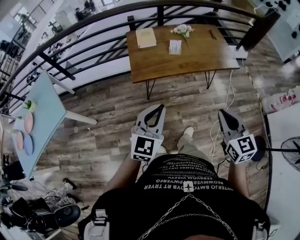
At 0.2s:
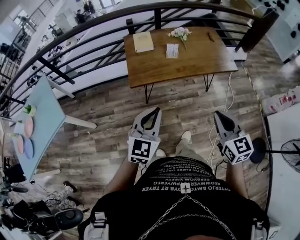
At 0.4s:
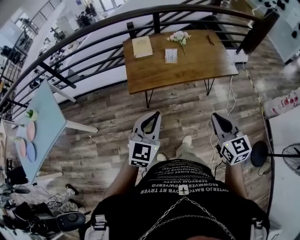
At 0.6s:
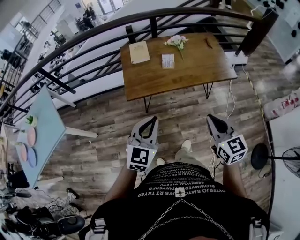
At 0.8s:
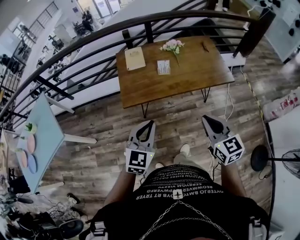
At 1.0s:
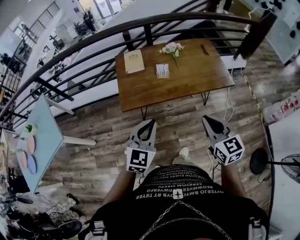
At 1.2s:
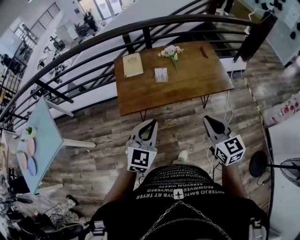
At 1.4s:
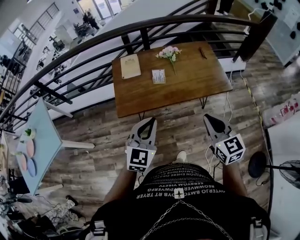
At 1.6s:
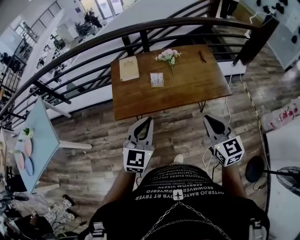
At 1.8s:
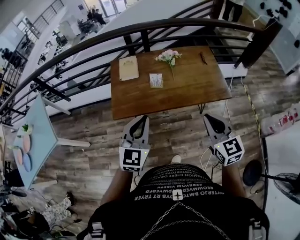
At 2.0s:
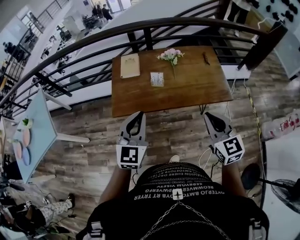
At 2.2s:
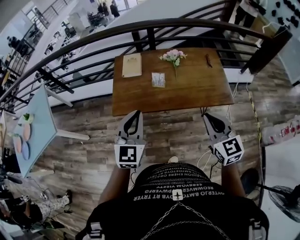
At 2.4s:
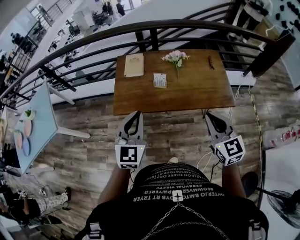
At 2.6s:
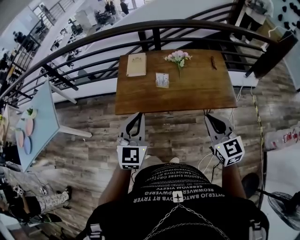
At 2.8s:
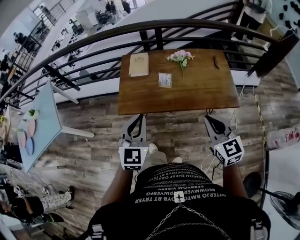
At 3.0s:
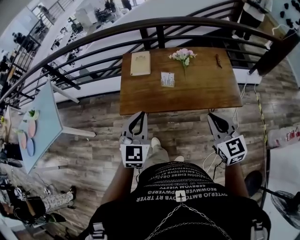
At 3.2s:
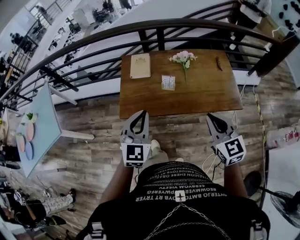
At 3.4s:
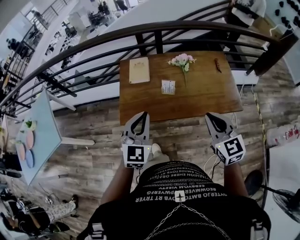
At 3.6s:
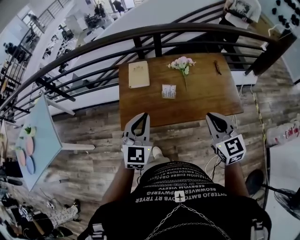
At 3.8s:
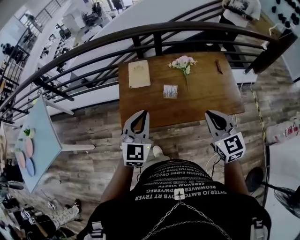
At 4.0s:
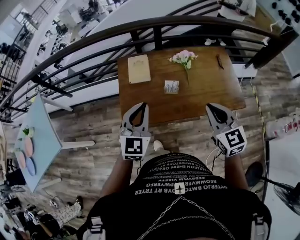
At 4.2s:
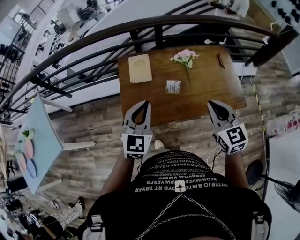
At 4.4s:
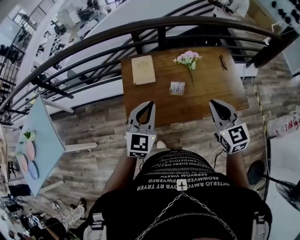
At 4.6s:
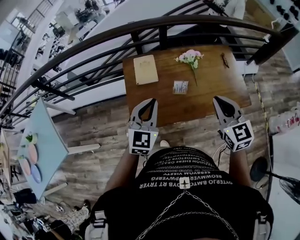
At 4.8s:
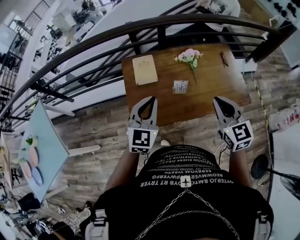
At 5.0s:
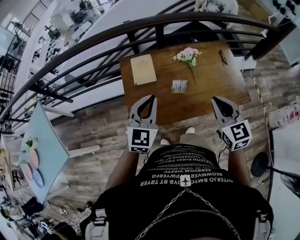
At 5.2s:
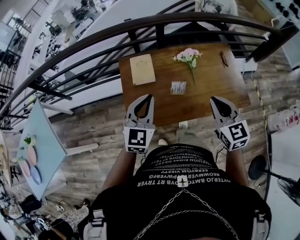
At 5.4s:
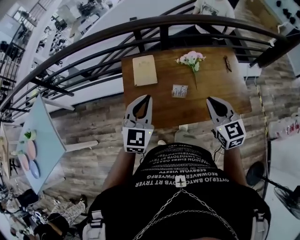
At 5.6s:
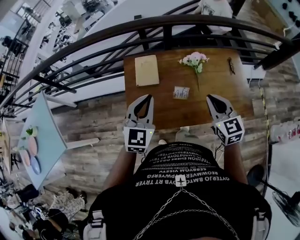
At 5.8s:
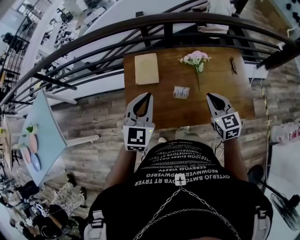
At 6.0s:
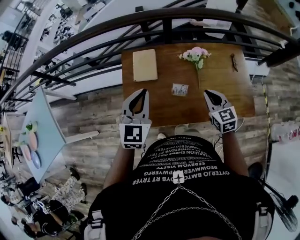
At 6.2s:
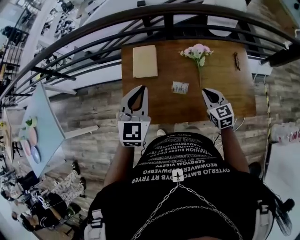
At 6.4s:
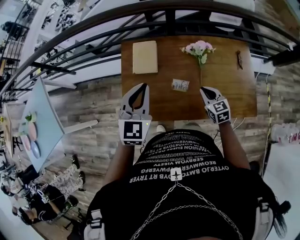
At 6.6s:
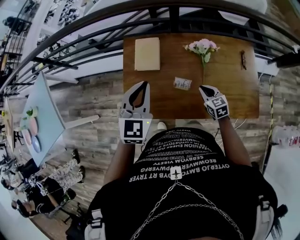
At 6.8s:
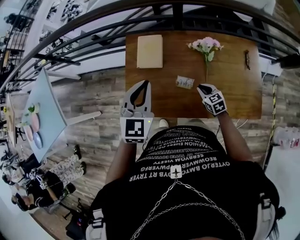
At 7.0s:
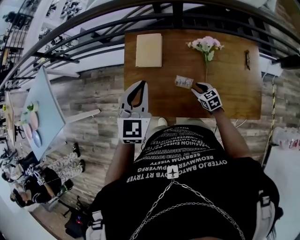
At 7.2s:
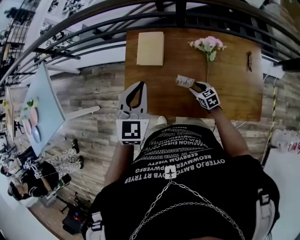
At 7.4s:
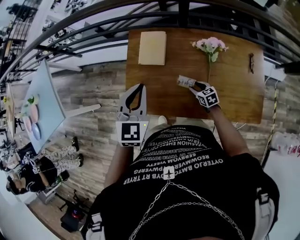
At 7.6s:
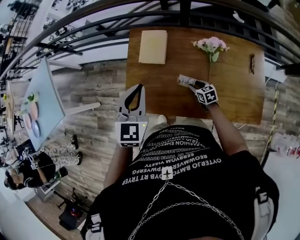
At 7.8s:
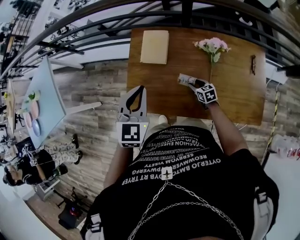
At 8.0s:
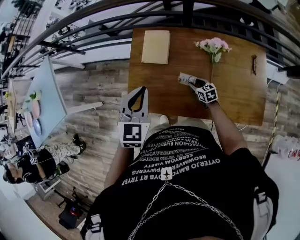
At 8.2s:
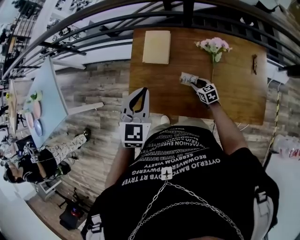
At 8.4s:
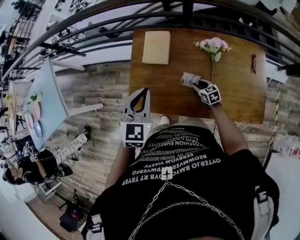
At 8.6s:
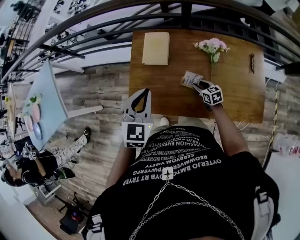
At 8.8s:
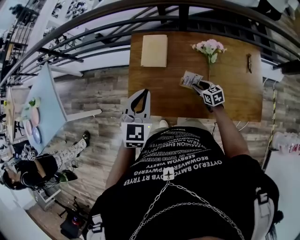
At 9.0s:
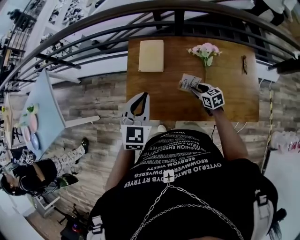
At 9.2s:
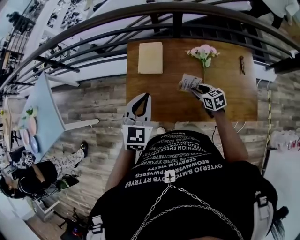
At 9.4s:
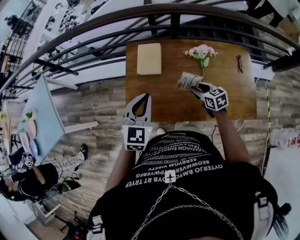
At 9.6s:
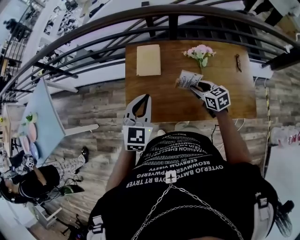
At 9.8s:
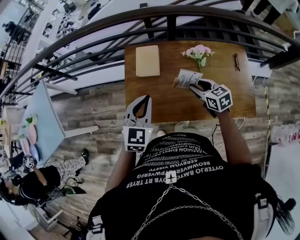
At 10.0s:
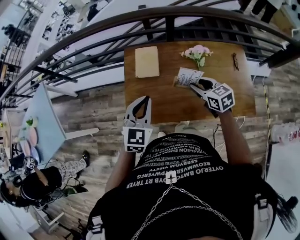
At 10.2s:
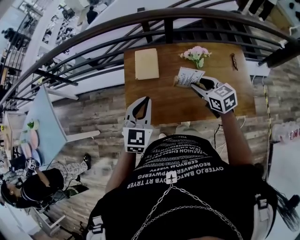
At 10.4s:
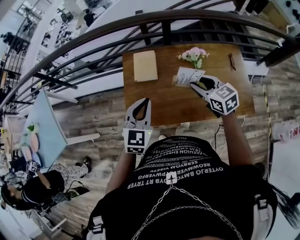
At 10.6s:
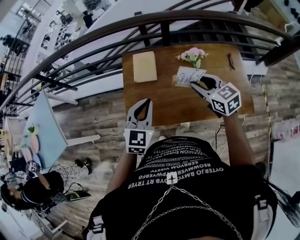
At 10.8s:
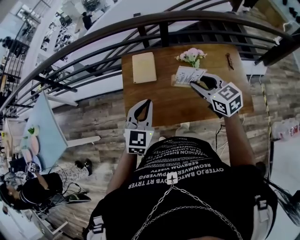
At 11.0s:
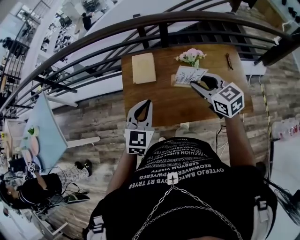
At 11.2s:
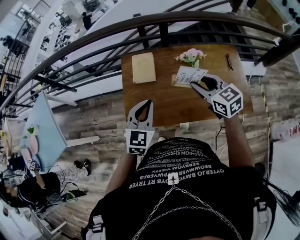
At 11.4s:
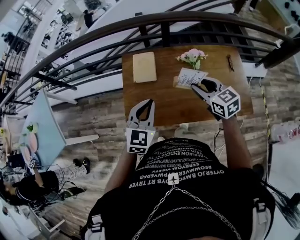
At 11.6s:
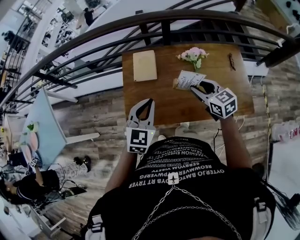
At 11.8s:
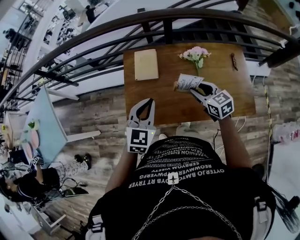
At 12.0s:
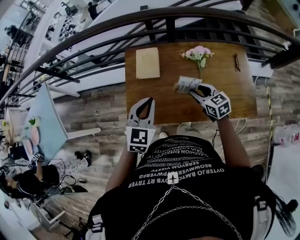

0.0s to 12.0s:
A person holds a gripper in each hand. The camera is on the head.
0.0s to 1.6s: The grippers both shift forward and to the right by some 25 cm.
1.6s to 3.0s: The two grippers go about 5 cm forward.
3.0s to 4.4s: The left gripper moves forward, roughly 15 cm; the right gripper moves forward and to the left, some 20 cm.
4.4s to 6.0s: The left gripper shifts roughly 10 cm forward. Meanwhile the right gripper moves forward and downward, approximately 20 cm.
6.0s to 7.6s: The right gripper heads downward, covering about 30 cm, rotates roughly 30 degrees, and opens.
7.6s to 9.0s: The right gripper is displaced upward by approximately 10 cm.
9.0s to 10.4s: The right gripper heads upward, covering approximately 25 cm.
10.4s to 12.0s: The right gripper is displaced downward by some 10 cm.

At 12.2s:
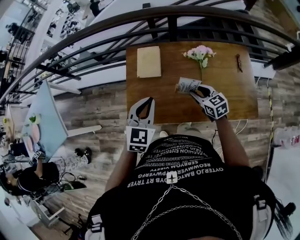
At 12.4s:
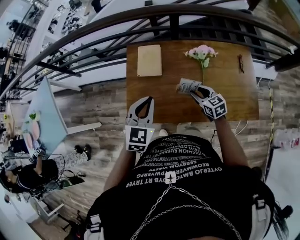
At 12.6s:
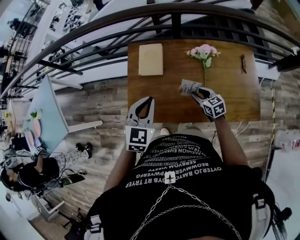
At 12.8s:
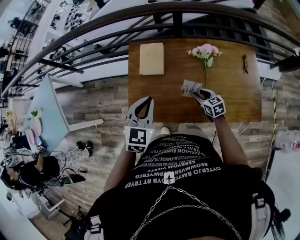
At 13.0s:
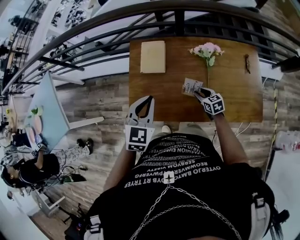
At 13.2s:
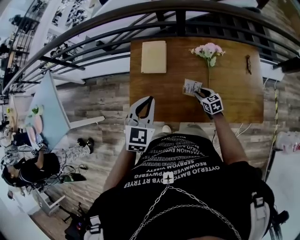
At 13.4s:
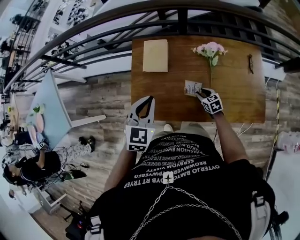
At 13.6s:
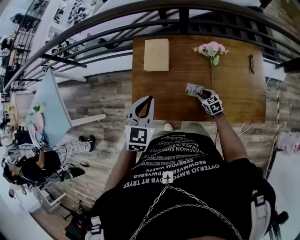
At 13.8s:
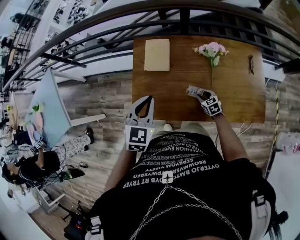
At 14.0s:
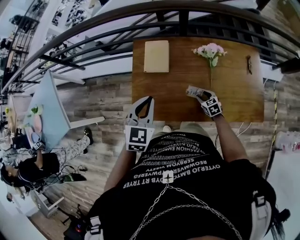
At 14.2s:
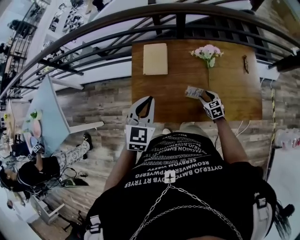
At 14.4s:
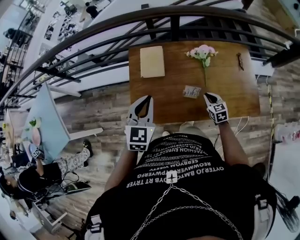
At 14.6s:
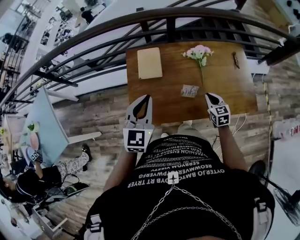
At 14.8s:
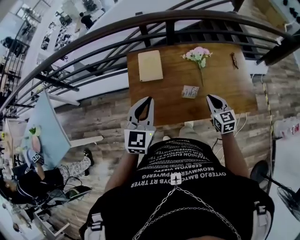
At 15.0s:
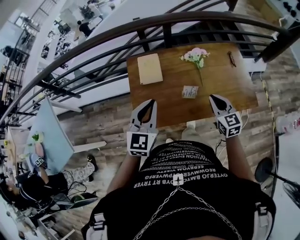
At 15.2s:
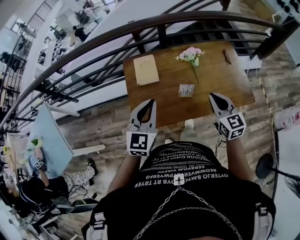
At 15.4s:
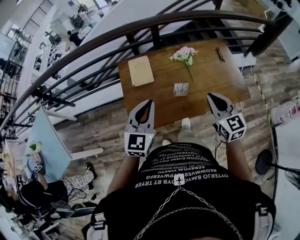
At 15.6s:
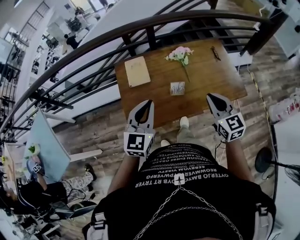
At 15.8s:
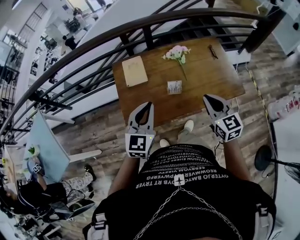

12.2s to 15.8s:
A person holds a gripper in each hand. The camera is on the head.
12.2s to 14.0s: The right gripper heads downward, covering about 20 cm.
14.0s to 15.8s: The right gripper travels upward and backward by approximately 40 cm, rotates about 40 degrees, and closes its fingers. Meanwhile the left gripper goes roughly 10 cm backward, upward and to the right, and rotates approximately 20 degrees.

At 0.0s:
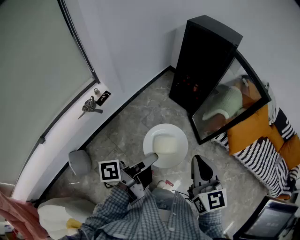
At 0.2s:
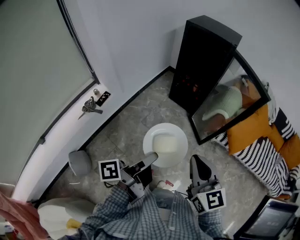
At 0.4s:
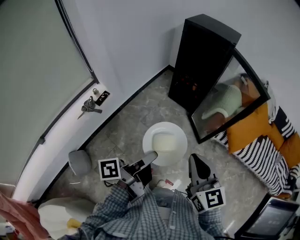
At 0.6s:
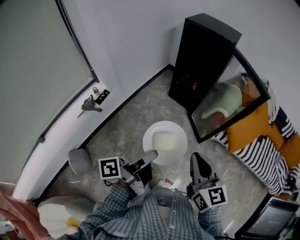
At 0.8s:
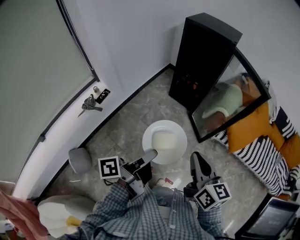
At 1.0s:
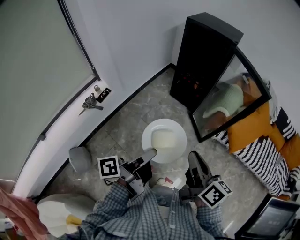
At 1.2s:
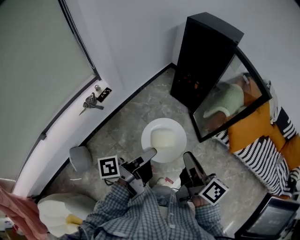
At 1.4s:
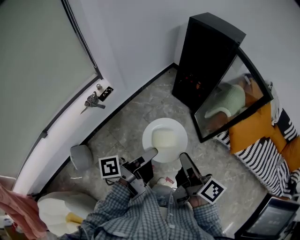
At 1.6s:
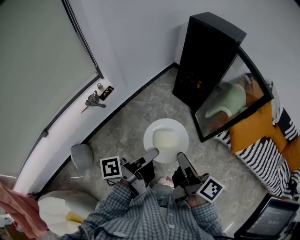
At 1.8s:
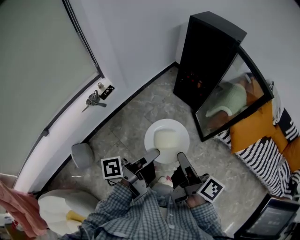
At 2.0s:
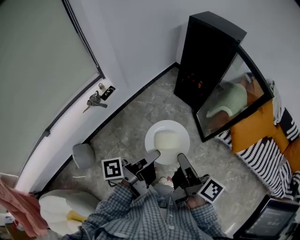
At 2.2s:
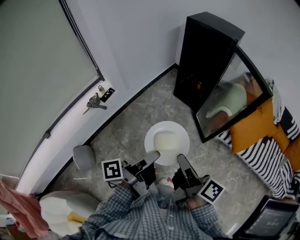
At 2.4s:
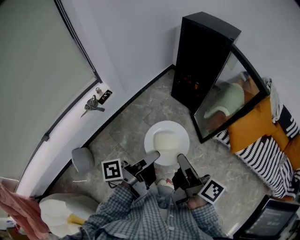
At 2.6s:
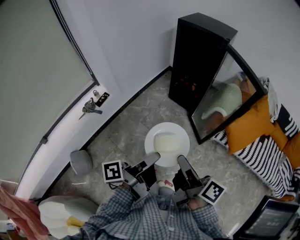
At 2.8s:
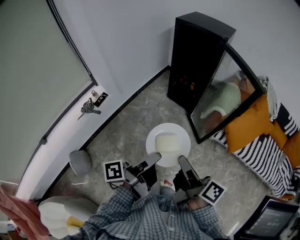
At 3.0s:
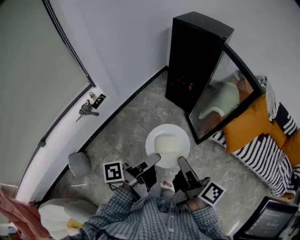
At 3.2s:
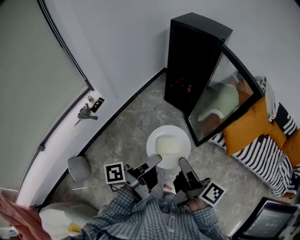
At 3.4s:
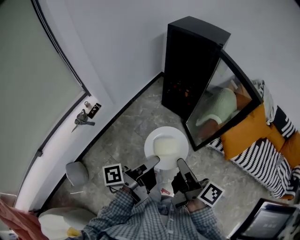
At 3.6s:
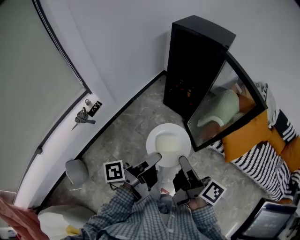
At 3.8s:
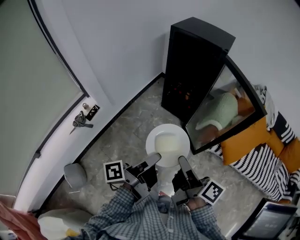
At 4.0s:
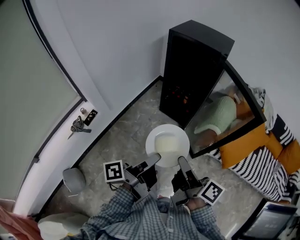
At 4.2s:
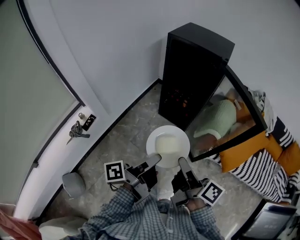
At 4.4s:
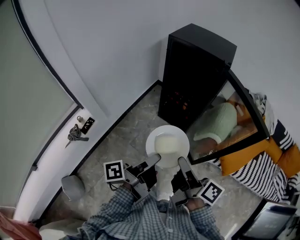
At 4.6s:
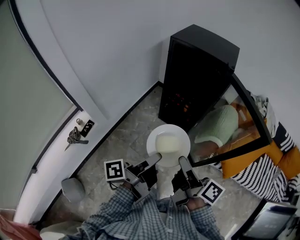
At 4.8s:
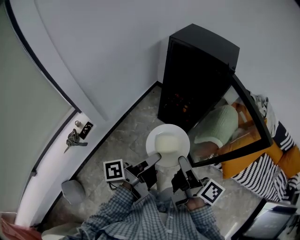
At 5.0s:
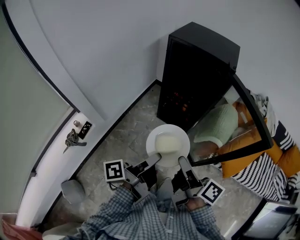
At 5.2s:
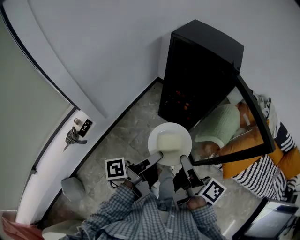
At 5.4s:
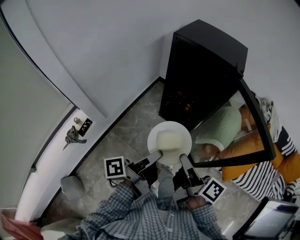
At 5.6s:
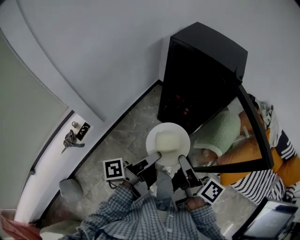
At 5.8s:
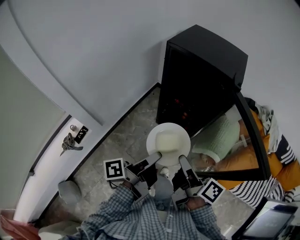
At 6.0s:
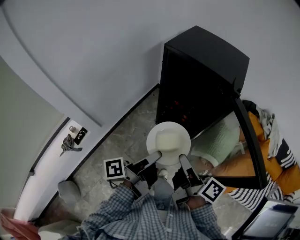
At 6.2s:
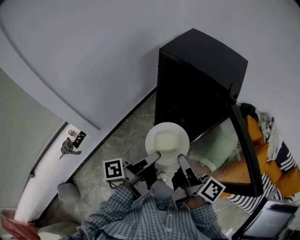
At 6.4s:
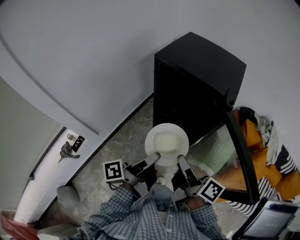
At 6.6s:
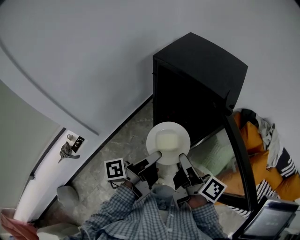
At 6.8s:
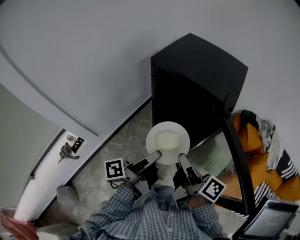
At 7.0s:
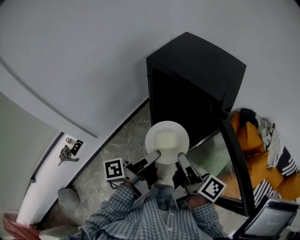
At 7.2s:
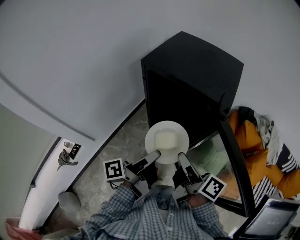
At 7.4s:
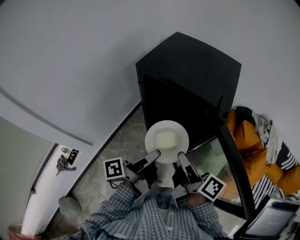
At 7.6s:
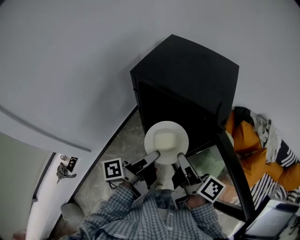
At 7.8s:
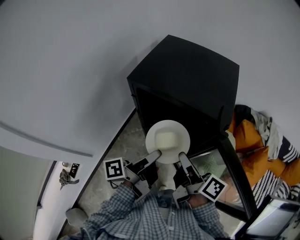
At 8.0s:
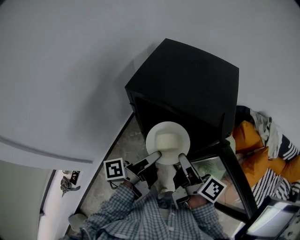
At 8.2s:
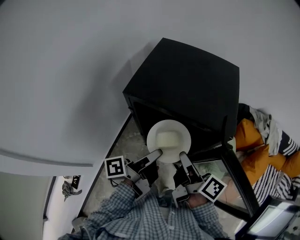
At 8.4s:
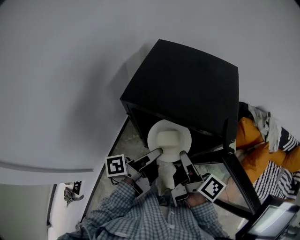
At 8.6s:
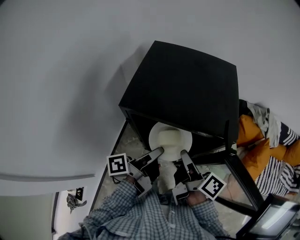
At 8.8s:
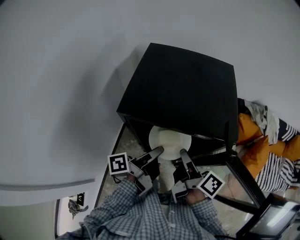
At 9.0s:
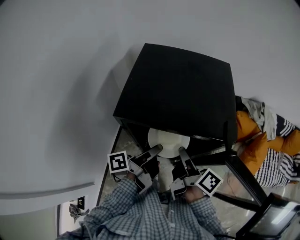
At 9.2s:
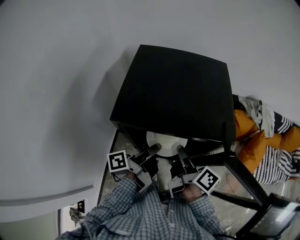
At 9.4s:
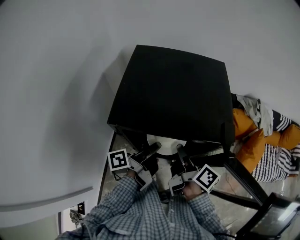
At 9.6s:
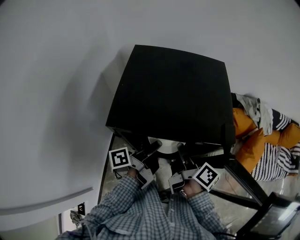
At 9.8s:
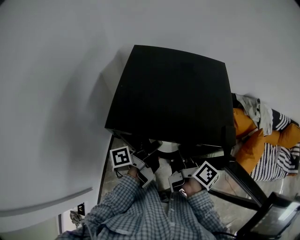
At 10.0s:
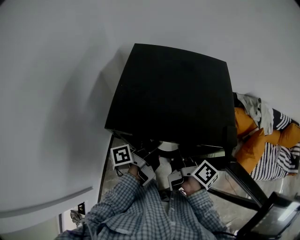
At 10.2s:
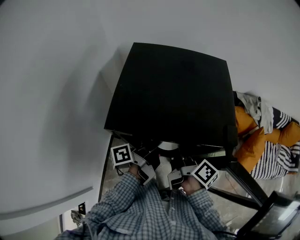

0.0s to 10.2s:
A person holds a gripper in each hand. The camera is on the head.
0.0s to 1.4s: The right gripper rotates around the line of its fingers by about 60 degrees, clockwise from behind.
1.4s to 3.0s: The right gripper changes place by approximately 5 cm.
3.0s to 4.4s: The right gripper changes place by about 20 cm.
4.4s to 5.8s: The right gripper changes place by roughly 15 cm.
5.8s to 7.2s: The right gripper changes place by approximately 15 cm.
7.2s to 8.8s: The right gripper shifts by approximately 15 cm, and swivels approximately 20 degrees.
8.8s to 10.2s: The right gripper changes place by approximately 10 cm.
